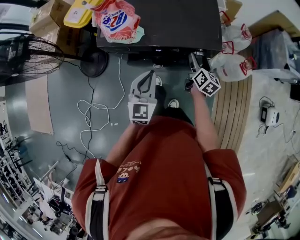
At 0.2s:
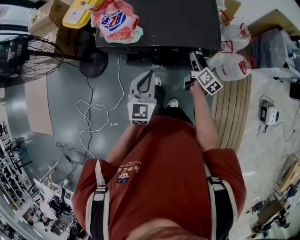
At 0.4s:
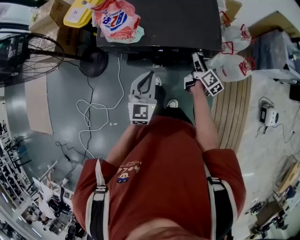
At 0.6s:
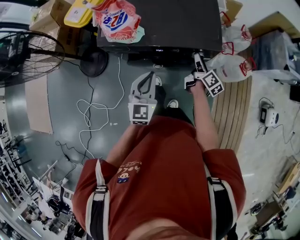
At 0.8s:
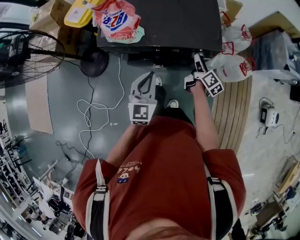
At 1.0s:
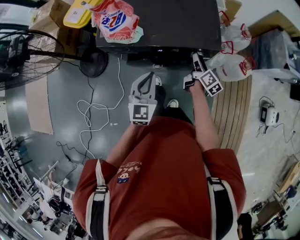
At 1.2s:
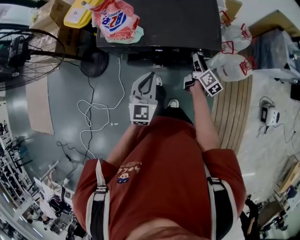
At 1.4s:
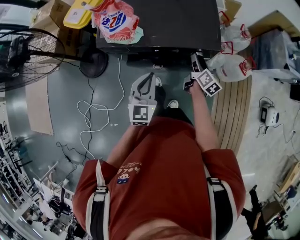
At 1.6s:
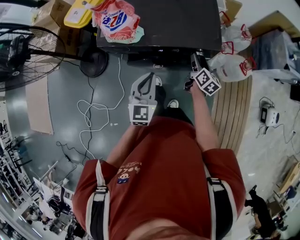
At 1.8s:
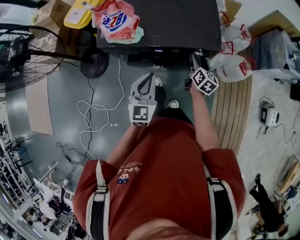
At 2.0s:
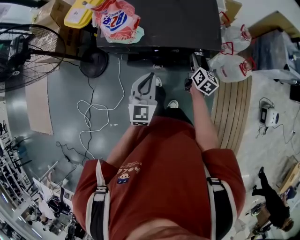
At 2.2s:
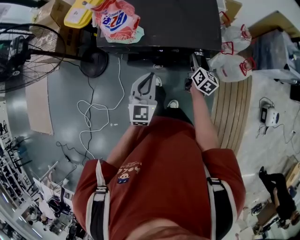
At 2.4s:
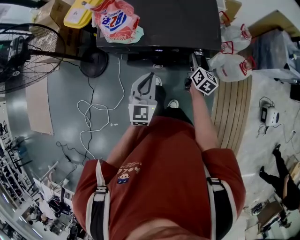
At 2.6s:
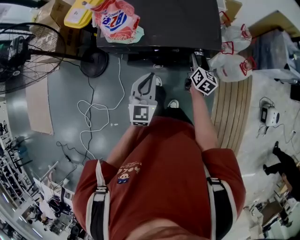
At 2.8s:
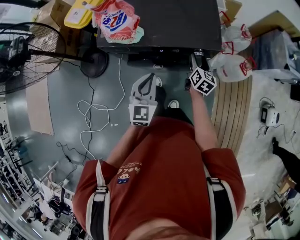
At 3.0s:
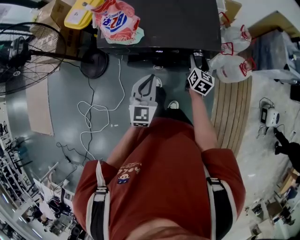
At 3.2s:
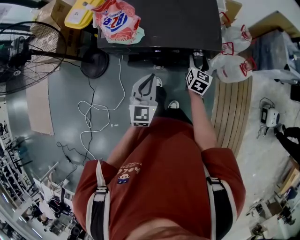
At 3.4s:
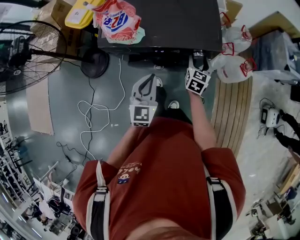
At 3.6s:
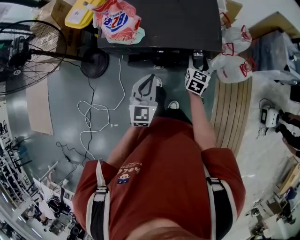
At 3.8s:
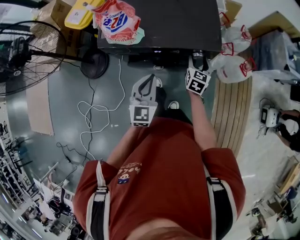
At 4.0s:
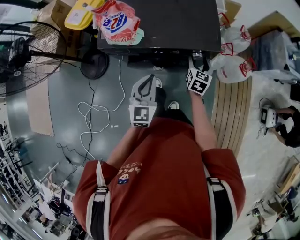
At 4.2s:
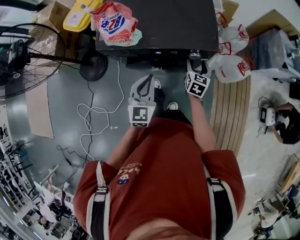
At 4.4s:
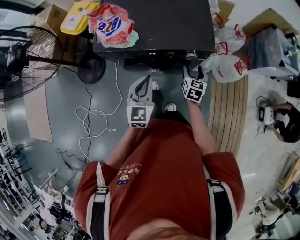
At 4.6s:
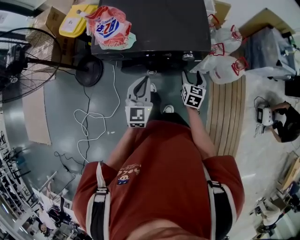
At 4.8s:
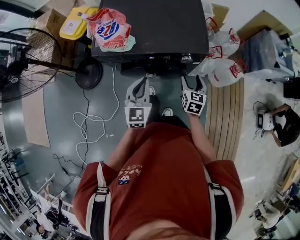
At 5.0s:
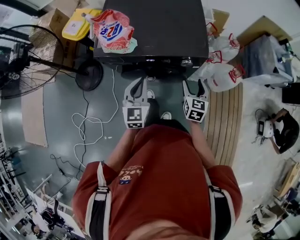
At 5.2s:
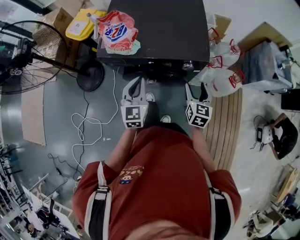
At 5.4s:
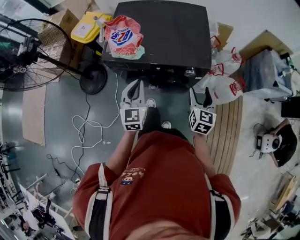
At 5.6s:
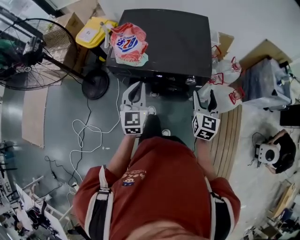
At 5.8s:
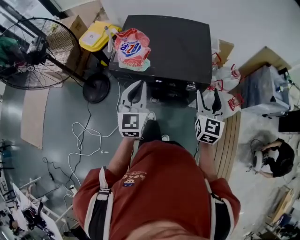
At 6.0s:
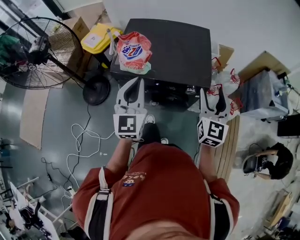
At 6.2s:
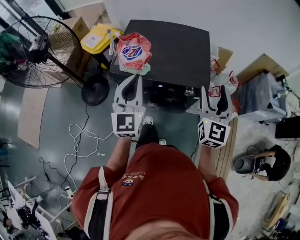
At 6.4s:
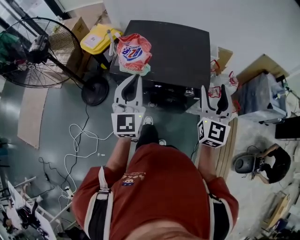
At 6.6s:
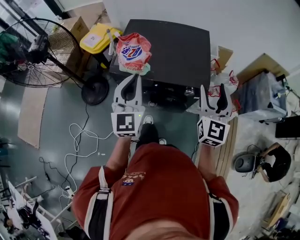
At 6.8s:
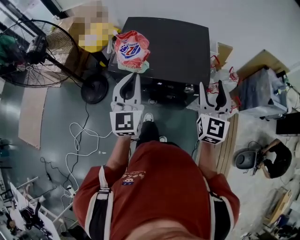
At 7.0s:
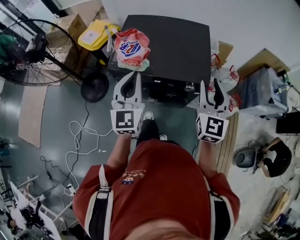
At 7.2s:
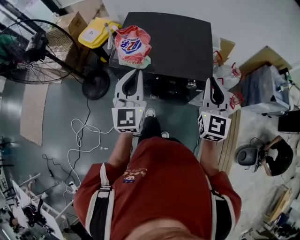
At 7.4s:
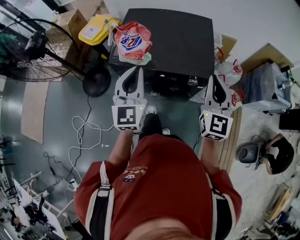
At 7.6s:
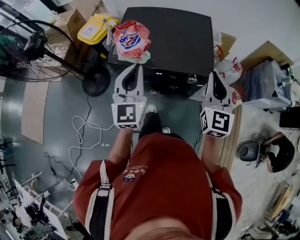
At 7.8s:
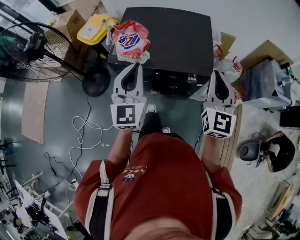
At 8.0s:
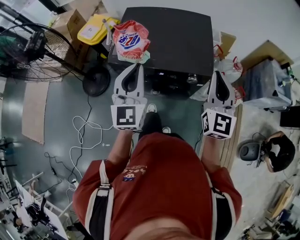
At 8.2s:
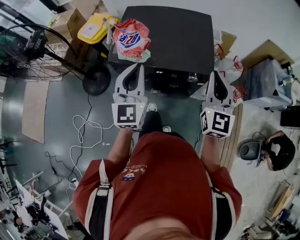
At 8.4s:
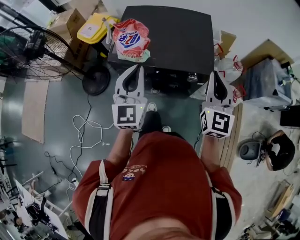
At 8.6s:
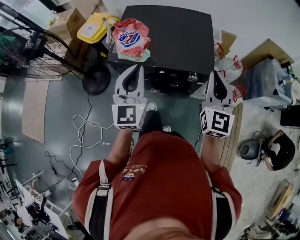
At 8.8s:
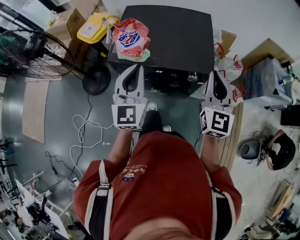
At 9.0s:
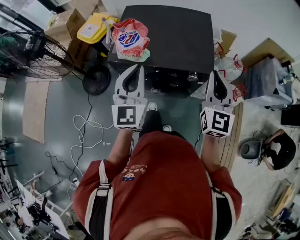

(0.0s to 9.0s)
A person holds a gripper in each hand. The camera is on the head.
1.6s - 3.0s: The right gripper swivels roughly 20 degrees.
3.0s - 4.4s: There are only small adjustments of the grippers.
4.4s - 6.0s: The left gripper is displaced upward by about 20 cm, and changes its angle by roughly 20 degrees. The right gripper goes about 30 cm upward, and points its fingers roughly 30 degrees further upward.
6.0s - 7.6s: The right gripper closes up.
7.6s - 9.0s: The grippers make only small movements.

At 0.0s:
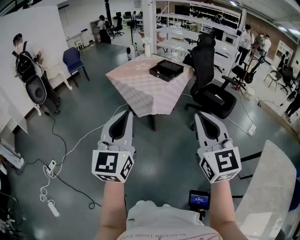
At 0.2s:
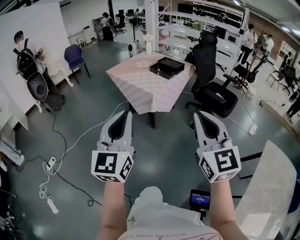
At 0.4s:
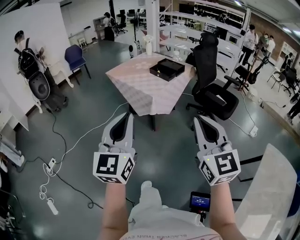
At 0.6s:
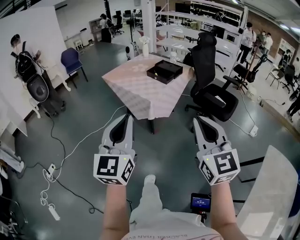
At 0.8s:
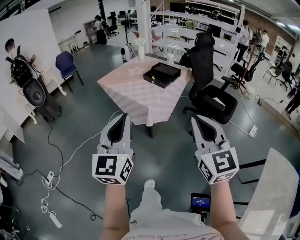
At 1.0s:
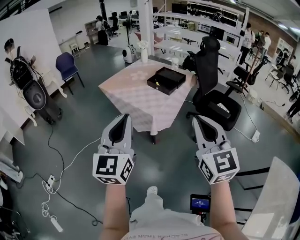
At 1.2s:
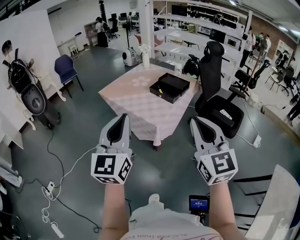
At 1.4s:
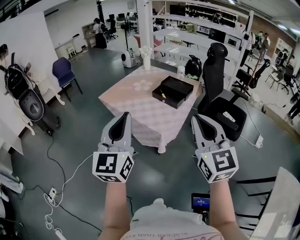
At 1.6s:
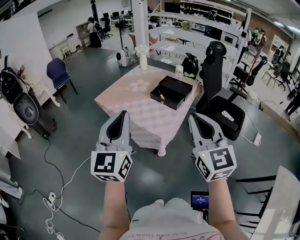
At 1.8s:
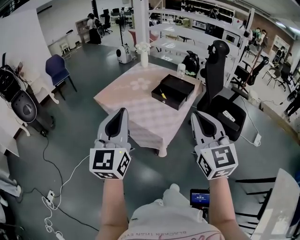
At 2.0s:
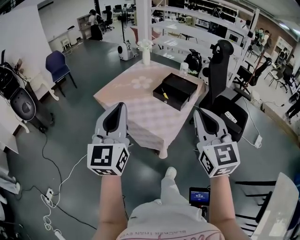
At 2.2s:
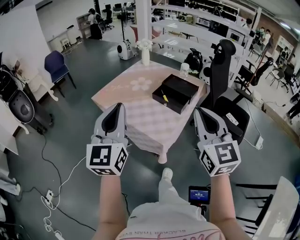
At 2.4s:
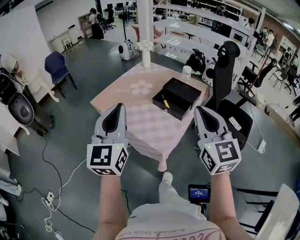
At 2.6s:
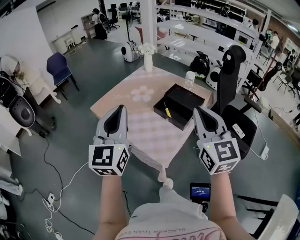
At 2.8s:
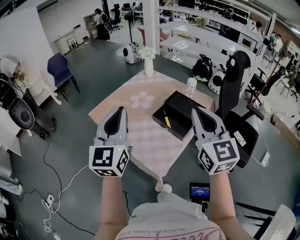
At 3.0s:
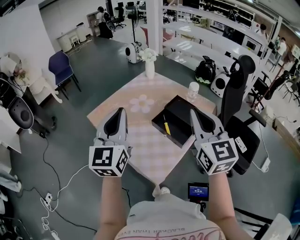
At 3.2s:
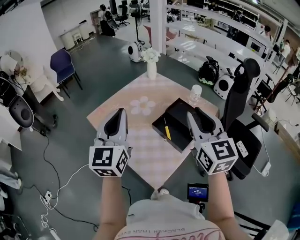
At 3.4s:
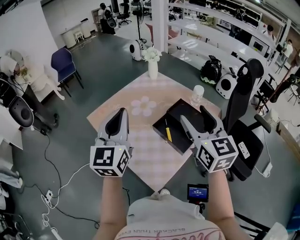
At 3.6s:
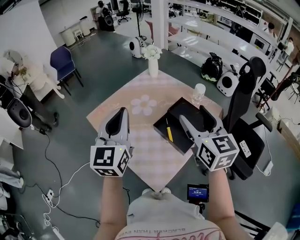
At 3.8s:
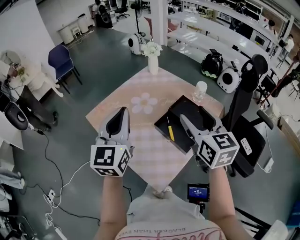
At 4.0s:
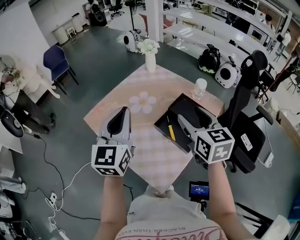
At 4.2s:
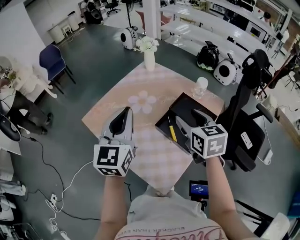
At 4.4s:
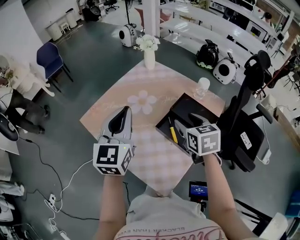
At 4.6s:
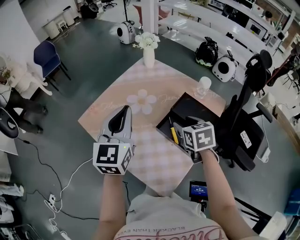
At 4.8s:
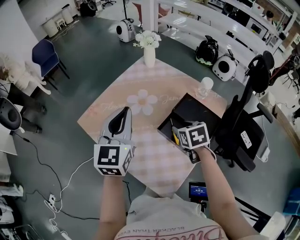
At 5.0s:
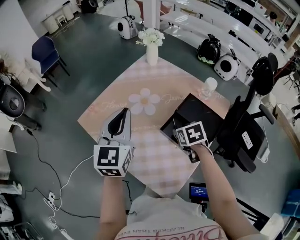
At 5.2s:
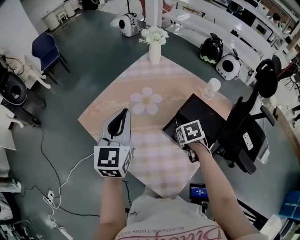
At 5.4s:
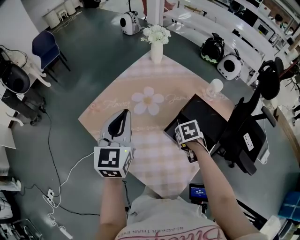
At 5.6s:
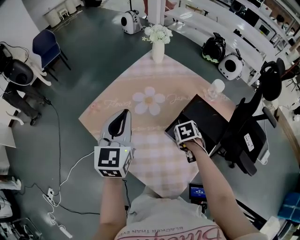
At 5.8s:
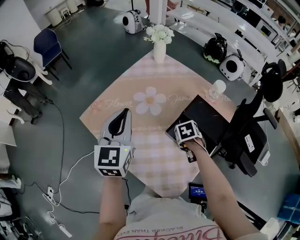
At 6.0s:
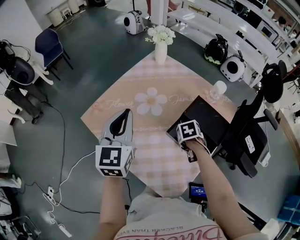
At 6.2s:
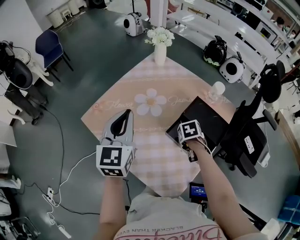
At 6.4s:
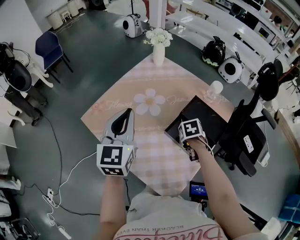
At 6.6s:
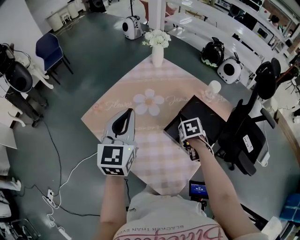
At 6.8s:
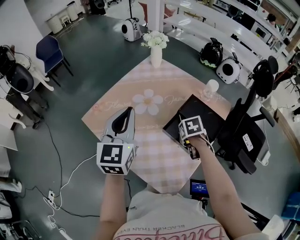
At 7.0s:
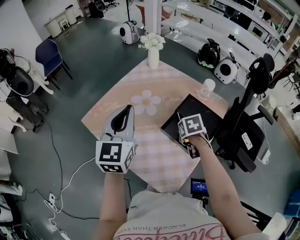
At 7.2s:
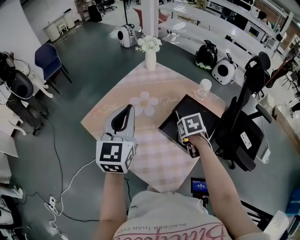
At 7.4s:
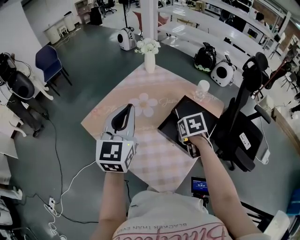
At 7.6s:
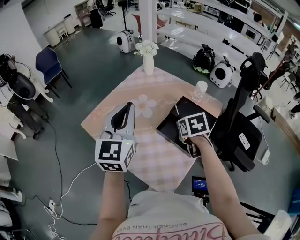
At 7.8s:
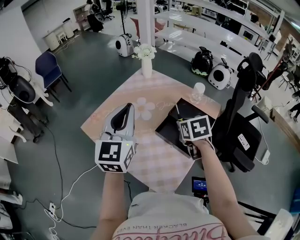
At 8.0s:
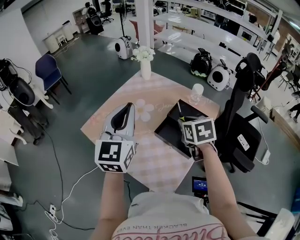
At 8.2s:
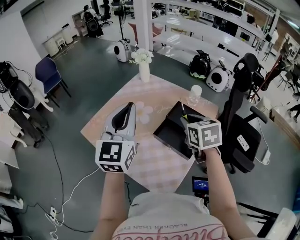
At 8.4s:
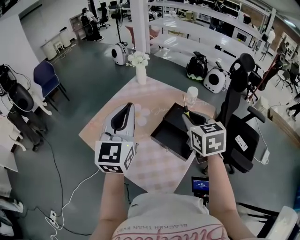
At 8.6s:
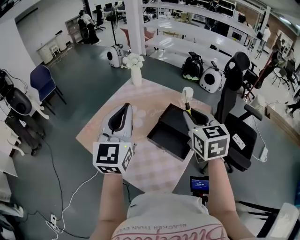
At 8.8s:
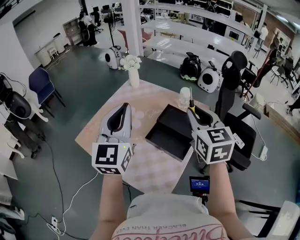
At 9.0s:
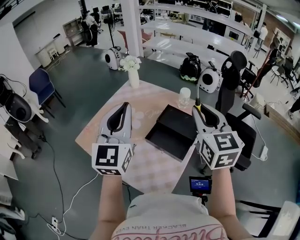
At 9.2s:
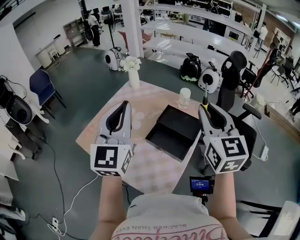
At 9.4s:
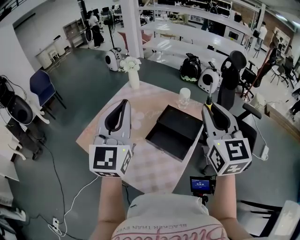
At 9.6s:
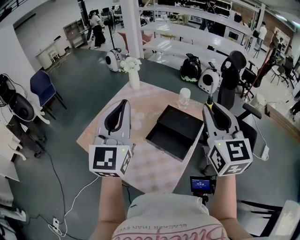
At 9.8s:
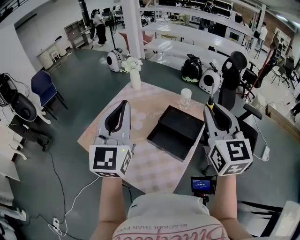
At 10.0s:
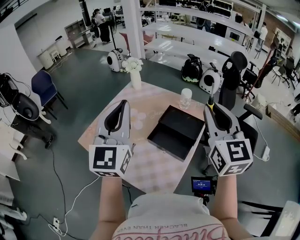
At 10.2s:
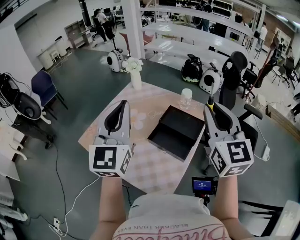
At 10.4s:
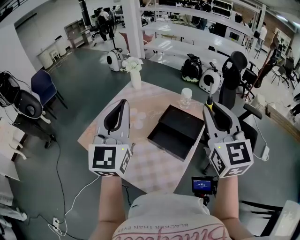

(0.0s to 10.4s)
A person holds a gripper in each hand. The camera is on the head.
0.0s - 1.4s: Both grippers move forward, about 35 cm.
1.4s - 3.0s: Both grippers move forward, some 35 cm.
3.0s - 4.4s: The right gripper is displaced downward and forward by about 25 cm, tilts its fingers about 40 degrees downward, and opens up. Meanwhile the left gripper is displaced forward and downward by roughly 15 cm.
4.4s - 6.0s: The left gripper shifts by roughly 10 cm; the right gripper travels downward by some 20 cm, points its fingers some 40 degrees further downward, and closes its fingers.
6.0s - 7.4s: The left gripper moves upward, some 5 cm. The right gripper goes some 10 cm upward.
7.4s - 9.0s: The right gripper goes some 25 cm upward, and tips its fingers upward by about 50 degrees, while the left gripper shifts roughly 10 cm upward and to the right.
9.0s - 10.4s: The right gripper shifts by approximately 5 cm.

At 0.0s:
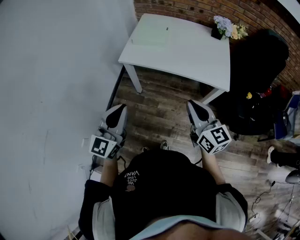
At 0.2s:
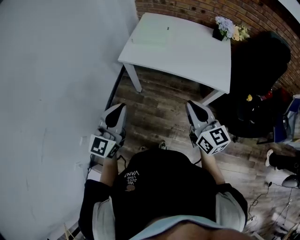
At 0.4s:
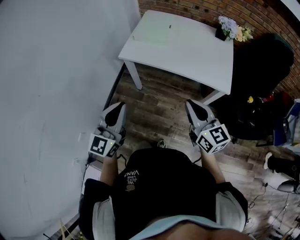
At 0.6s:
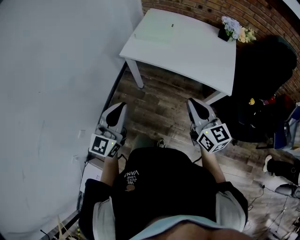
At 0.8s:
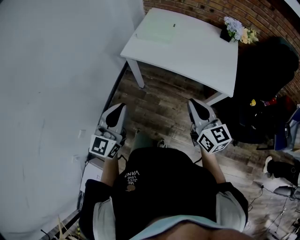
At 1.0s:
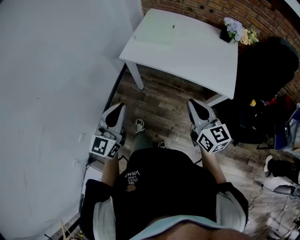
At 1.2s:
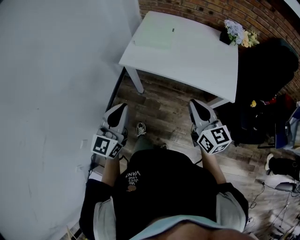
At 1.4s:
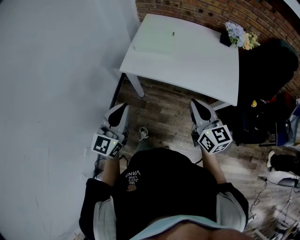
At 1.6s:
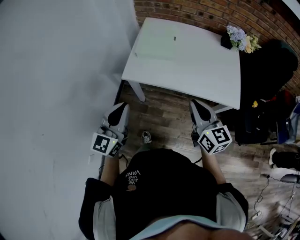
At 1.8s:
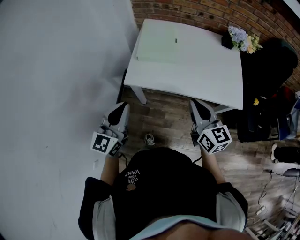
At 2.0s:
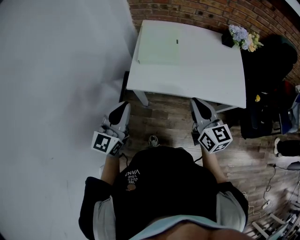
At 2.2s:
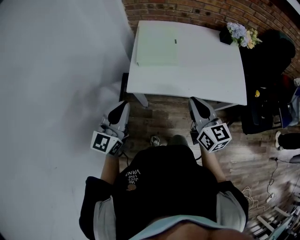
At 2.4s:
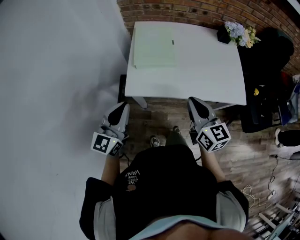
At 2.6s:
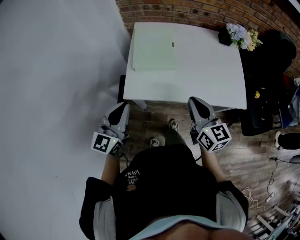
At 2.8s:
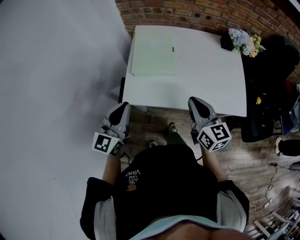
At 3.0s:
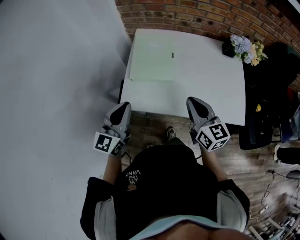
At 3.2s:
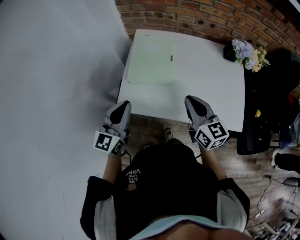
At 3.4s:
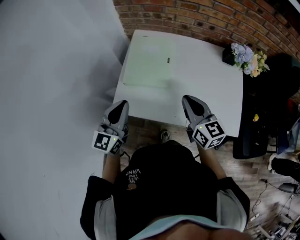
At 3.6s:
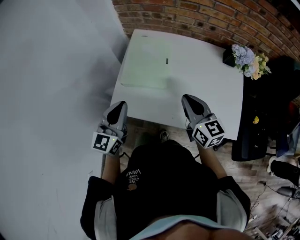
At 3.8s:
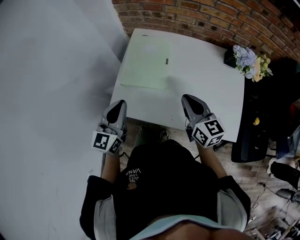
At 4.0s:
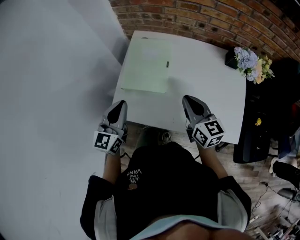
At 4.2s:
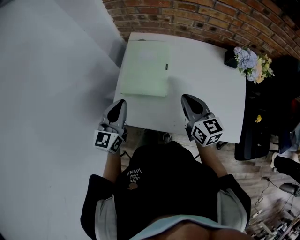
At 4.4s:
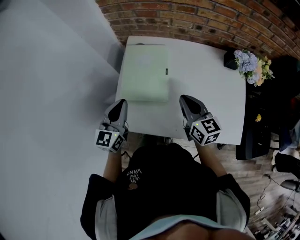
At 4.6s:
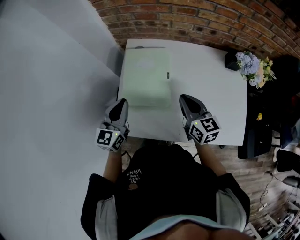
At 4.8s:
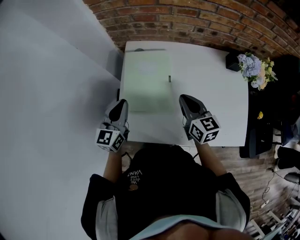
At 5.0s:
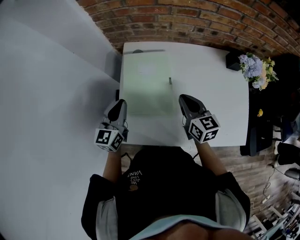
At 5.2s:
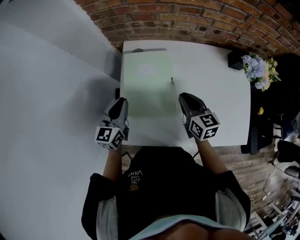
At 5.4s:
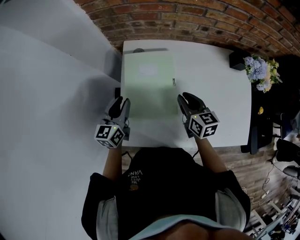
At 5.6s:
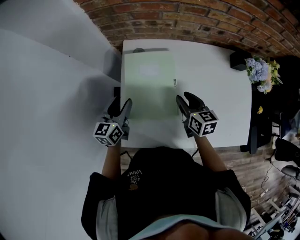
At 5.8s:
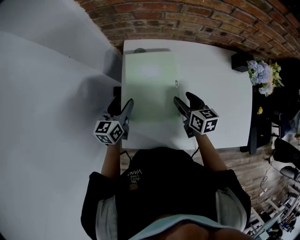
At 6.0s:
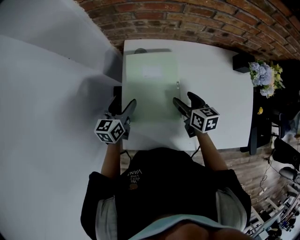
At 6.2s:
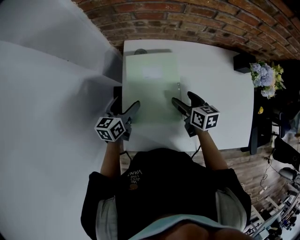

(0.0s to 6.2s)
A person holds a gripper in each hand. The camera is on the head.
0.0s - 1.6s: The two grippers go some 15 cm forward.
1.6s - 3.2s: Both grippers move forward, about 20 cm.
3.2s - 4.6s: Both grippers travel together forward, approximately 15 cm.
4.6s - 6.2s: Both grippers travel together downward and forward, approximately 15 cm. The right gripper rotates roughly 30 degrees, and opens its fingers, while the left gripper swivels about 30 degrees, and opens its fingers.
